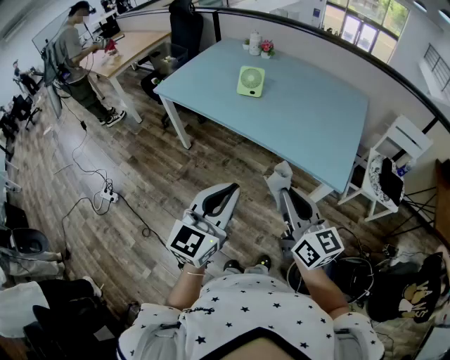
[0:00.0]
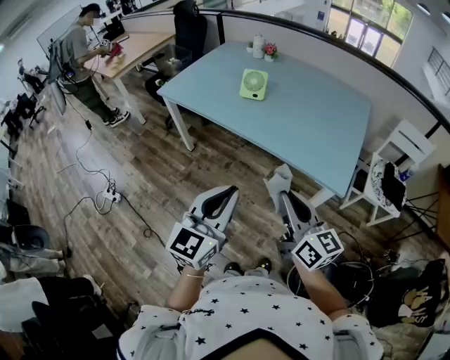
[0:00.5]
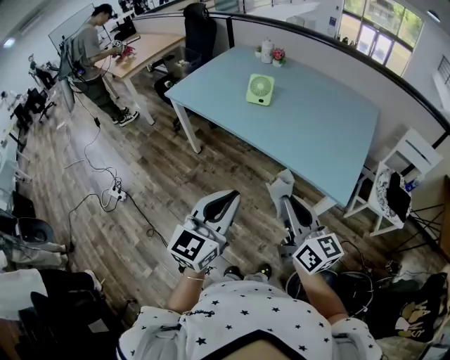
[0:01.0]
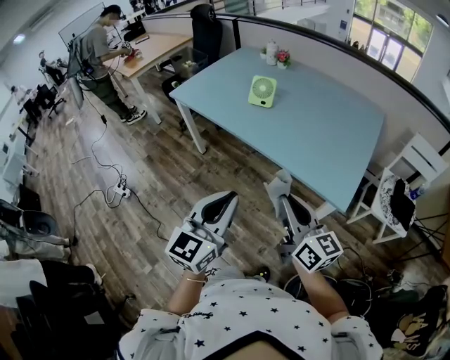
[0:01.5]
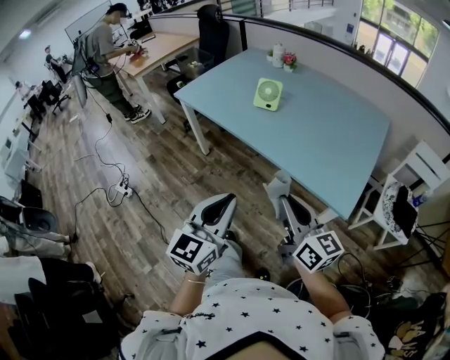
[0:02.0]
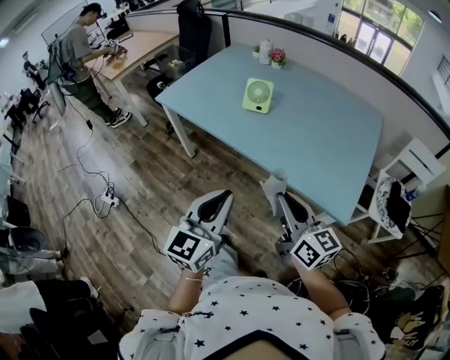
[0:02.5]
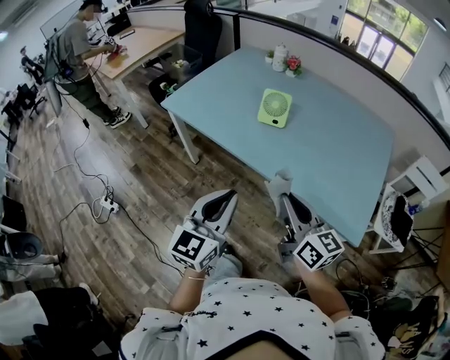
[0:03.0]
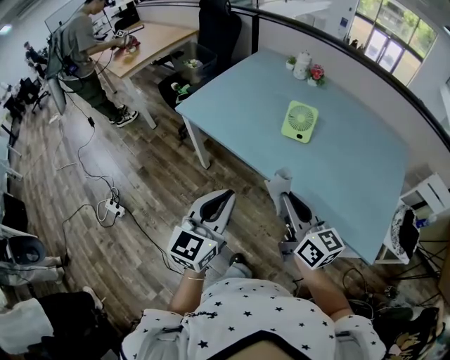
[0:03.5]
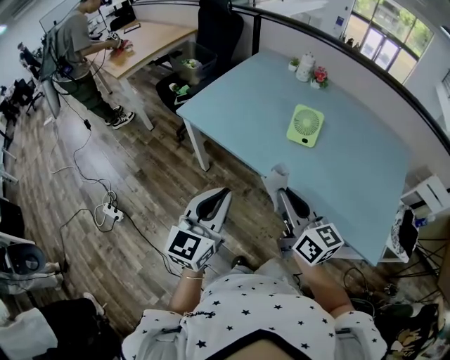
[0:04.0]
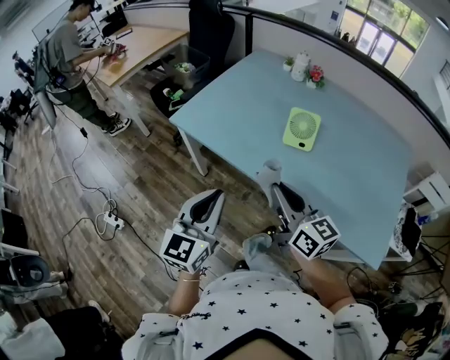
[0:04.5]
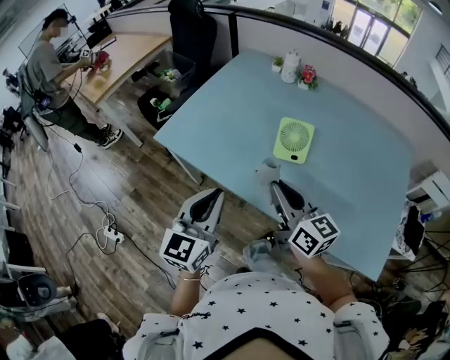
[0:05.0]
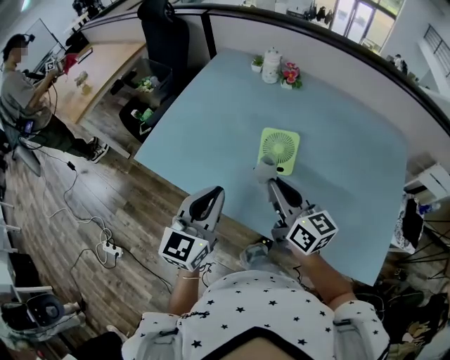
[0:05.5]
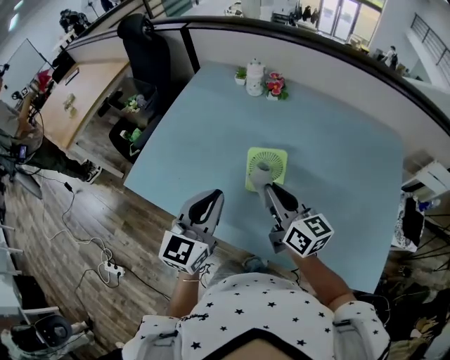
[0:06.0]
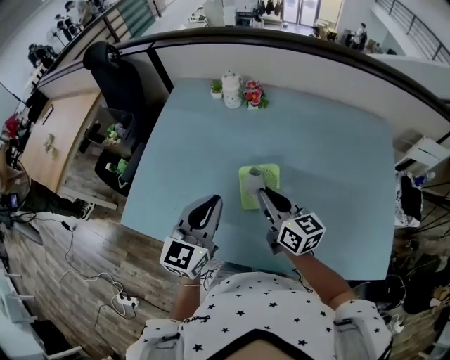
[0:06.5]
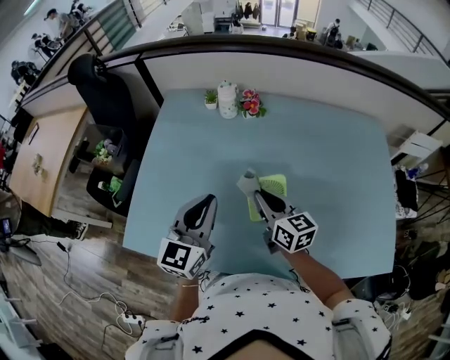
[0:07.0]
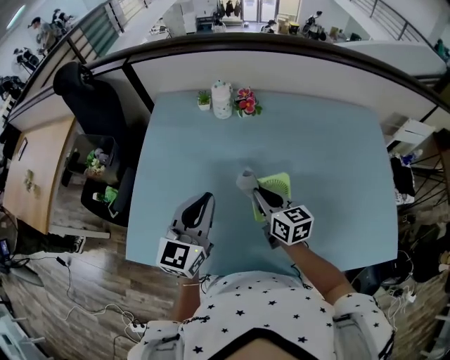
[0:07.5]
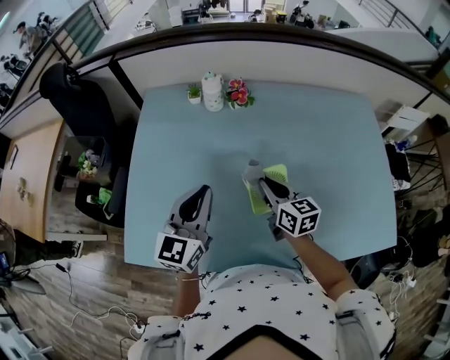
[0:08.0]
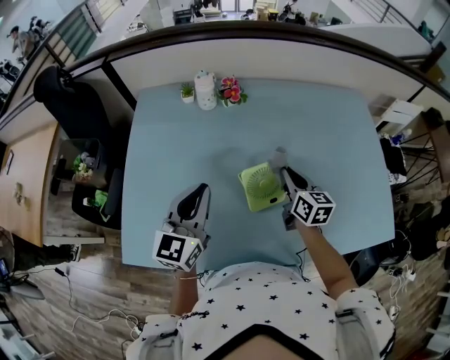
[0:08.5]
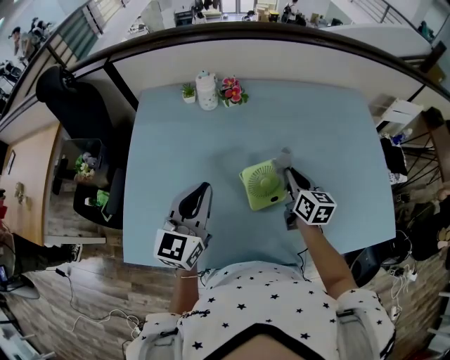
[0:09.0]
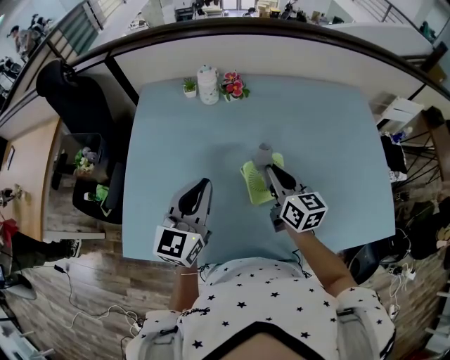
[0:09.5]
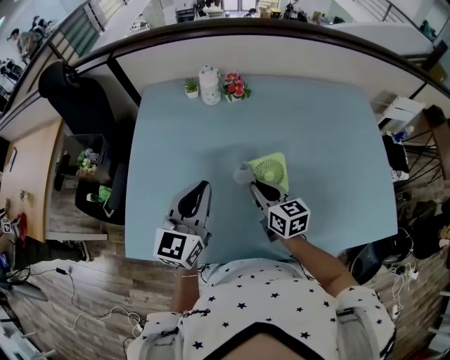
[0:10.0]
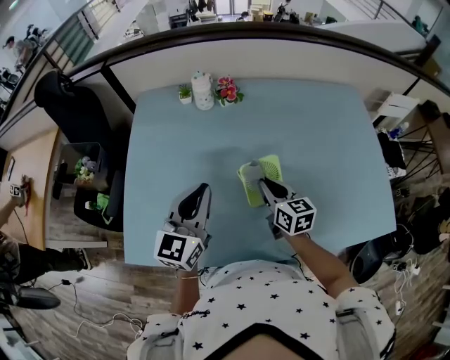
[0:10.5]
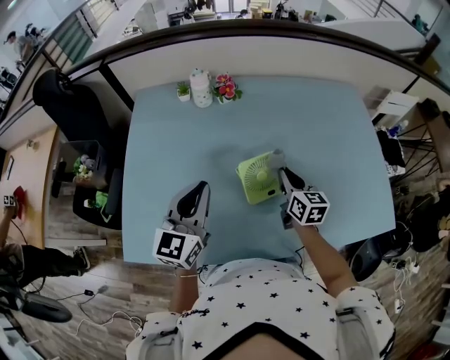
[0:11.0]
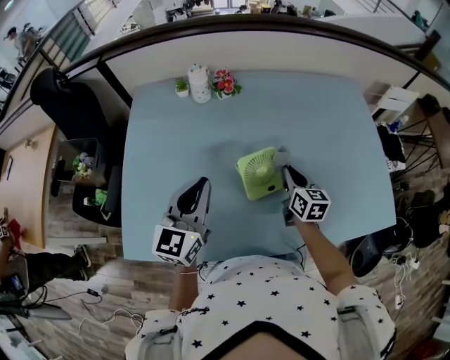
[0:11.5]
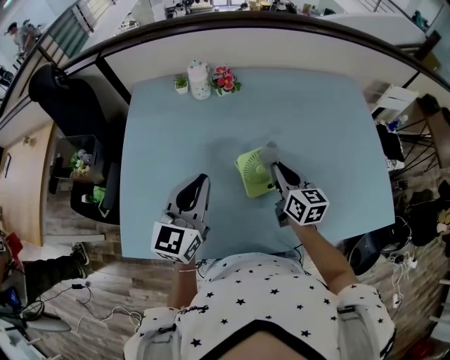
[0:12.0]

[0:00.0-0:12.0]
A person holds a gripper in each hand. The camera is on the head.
0:00.0 to 0:02.0: The right gripper shifts by about 5 cm.
0:02.0 to 0:04.0: The grippers both shift forward and to the left by some 35 cm.
0:04.0 to 0:06.0: Both grippers travel together forward and to the right, about 30 cm.
0:06.0 to 0:08.0: The left gripper goes some 15 cm forward and to the left; the right gripper travels forward and downward by some 15 cm, and rotates about 30 degrees.
0:08.0 to 0:10.0: The right gripper moves approximately 10 cm to the right and comes back.
0:10.0 to 0:12.0: The right gripper travels to the right by approximately 10 cm.

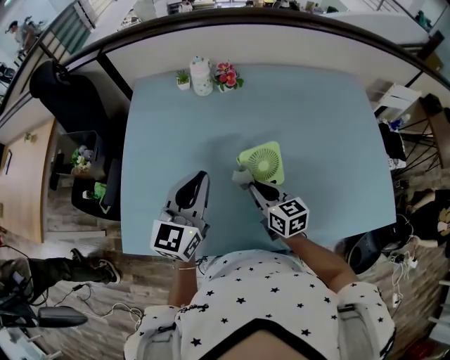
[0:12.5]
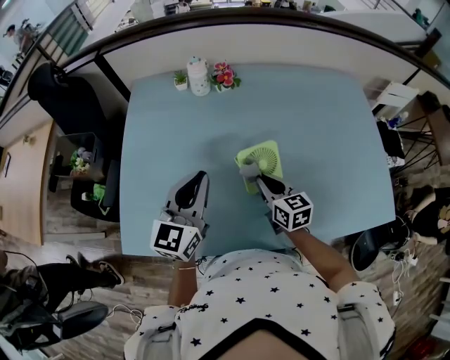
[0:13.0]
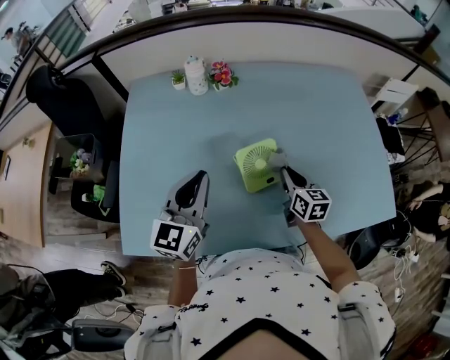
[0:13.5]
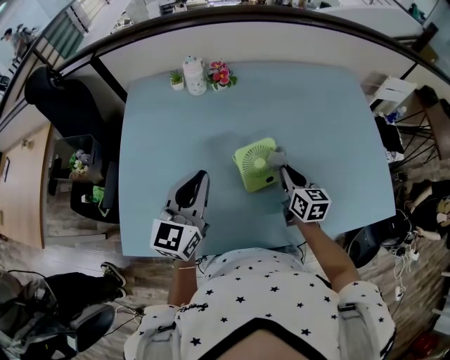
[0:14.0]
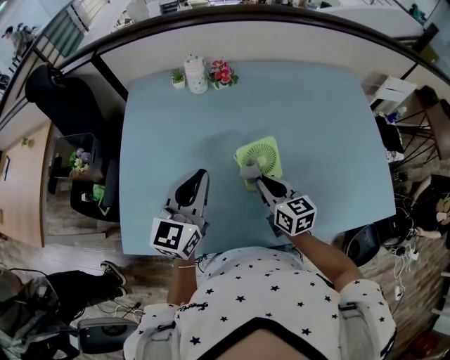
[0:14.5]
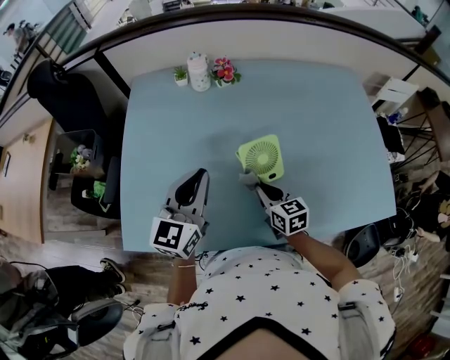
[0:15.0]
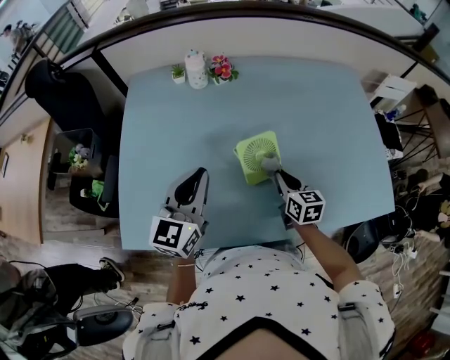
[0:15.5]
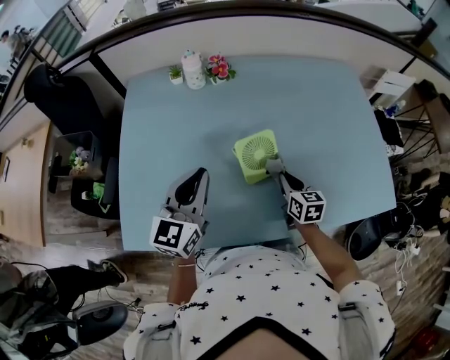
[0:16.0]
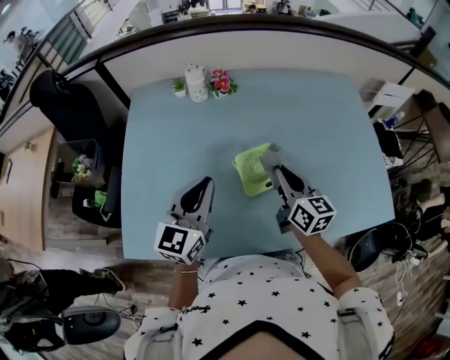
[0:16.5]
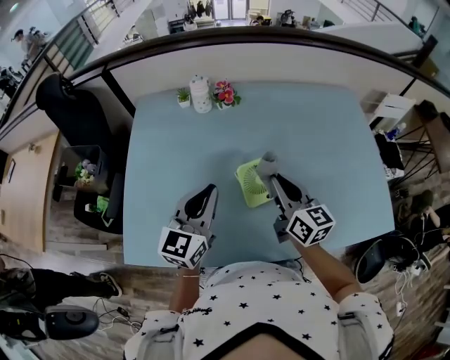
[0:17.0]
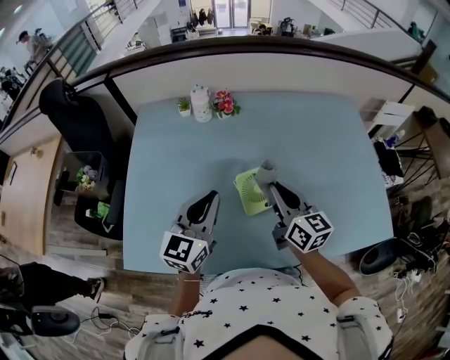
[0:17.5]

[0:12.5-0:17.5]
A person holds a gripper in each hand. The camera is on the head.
0:12.5 to 0:15.0: The right gripper reaches roughly 10 cm to the right, then returns.
0:15.0 to 0:17.5: The right gripper shifts roughly 15 cm upward, and rotates approximately 30 degrees.

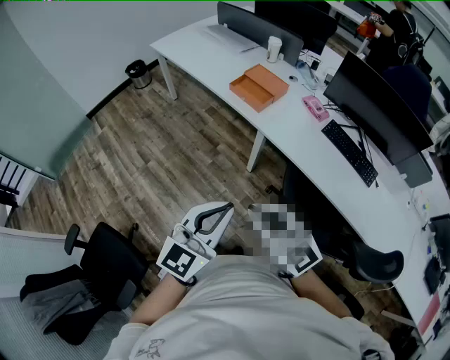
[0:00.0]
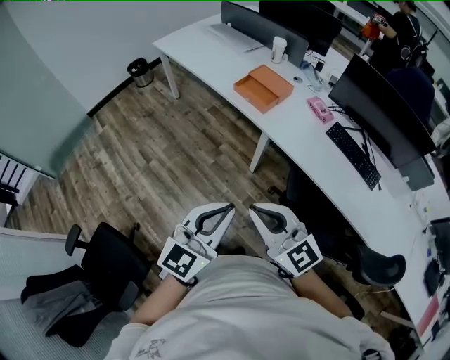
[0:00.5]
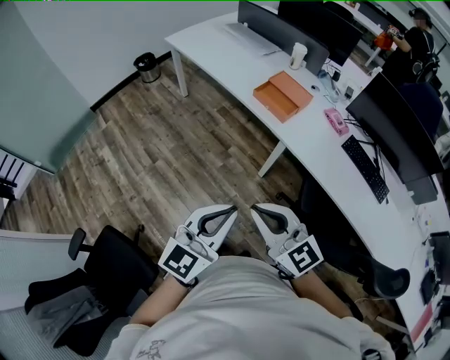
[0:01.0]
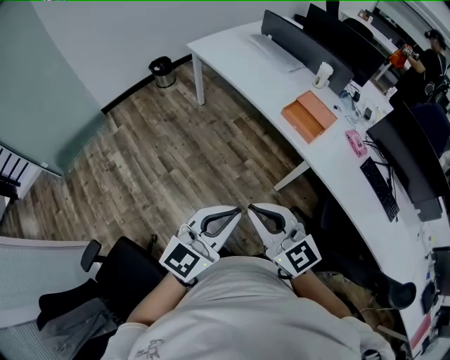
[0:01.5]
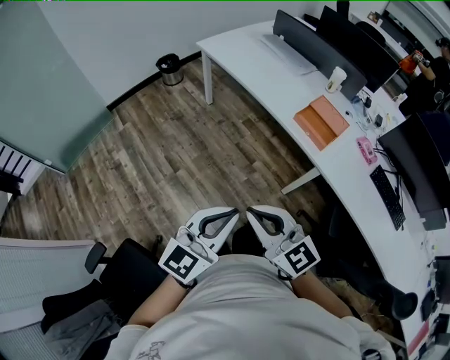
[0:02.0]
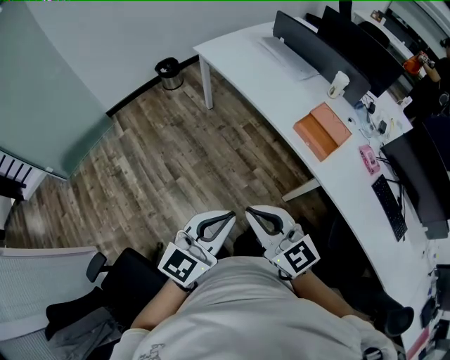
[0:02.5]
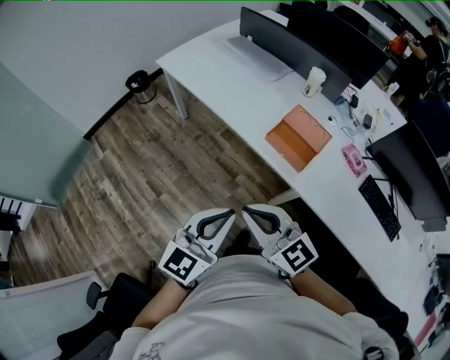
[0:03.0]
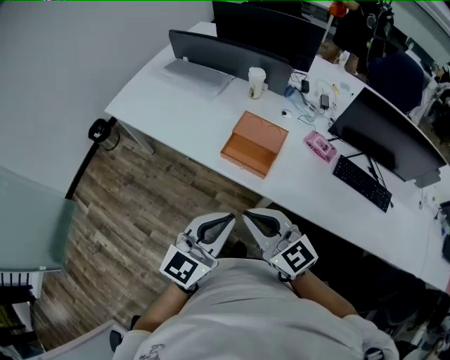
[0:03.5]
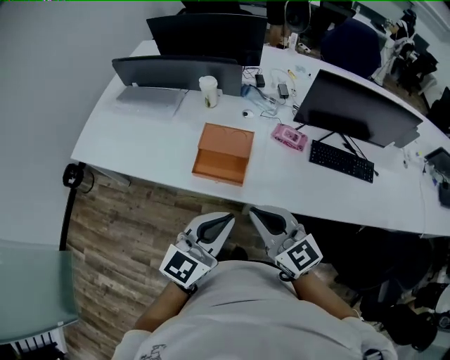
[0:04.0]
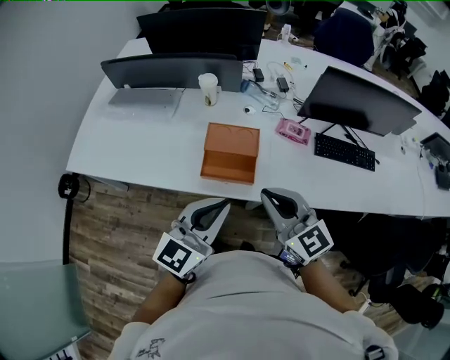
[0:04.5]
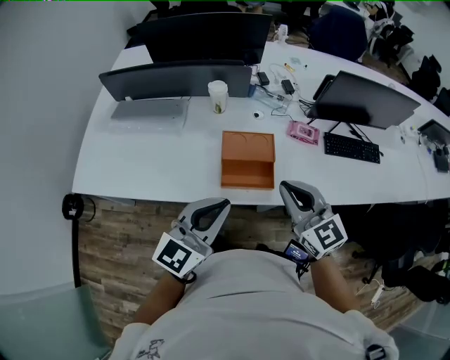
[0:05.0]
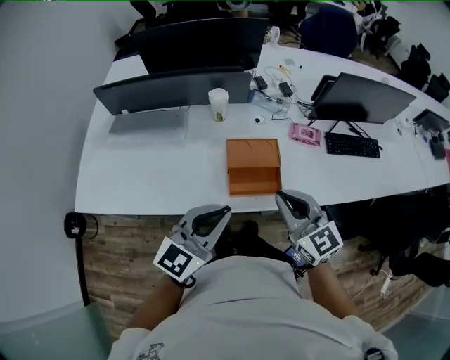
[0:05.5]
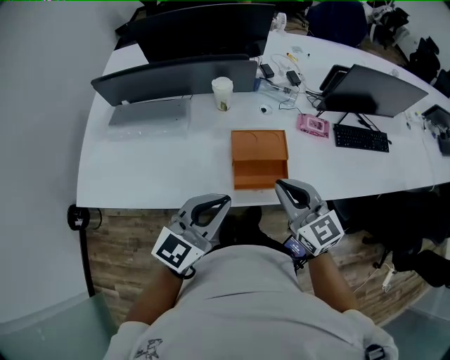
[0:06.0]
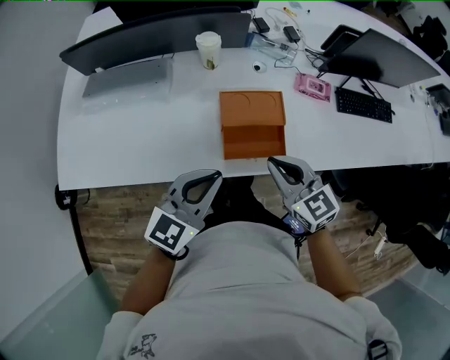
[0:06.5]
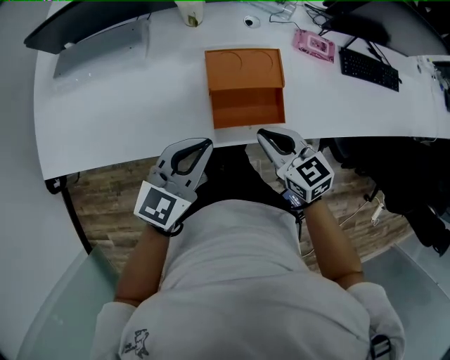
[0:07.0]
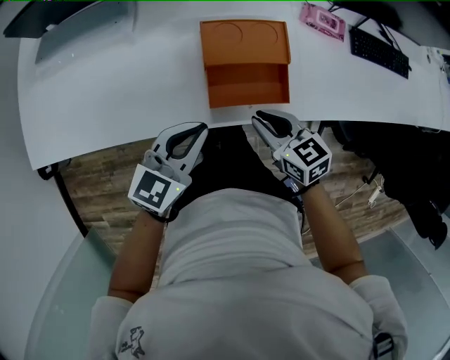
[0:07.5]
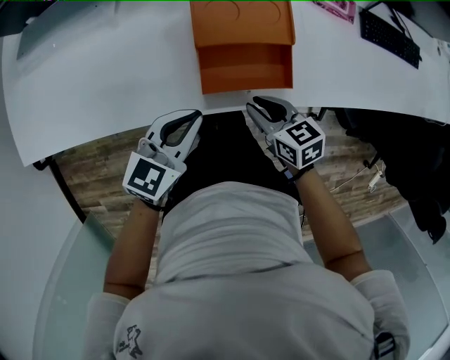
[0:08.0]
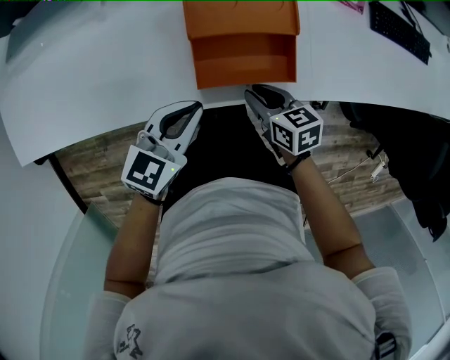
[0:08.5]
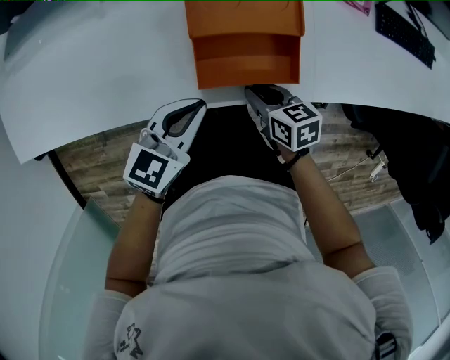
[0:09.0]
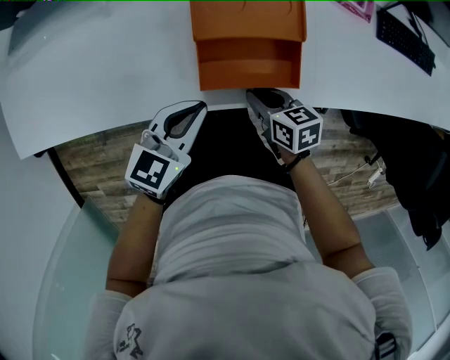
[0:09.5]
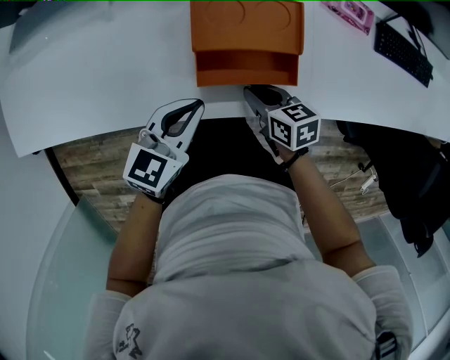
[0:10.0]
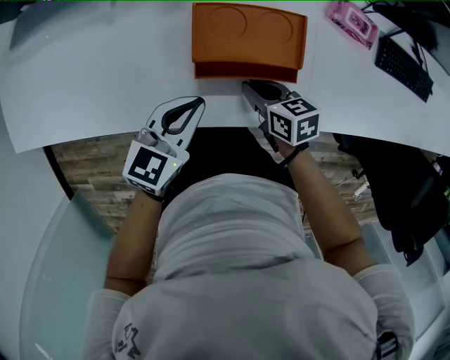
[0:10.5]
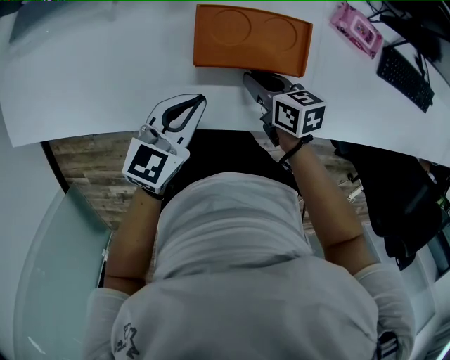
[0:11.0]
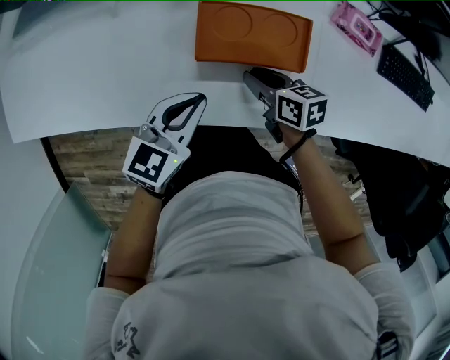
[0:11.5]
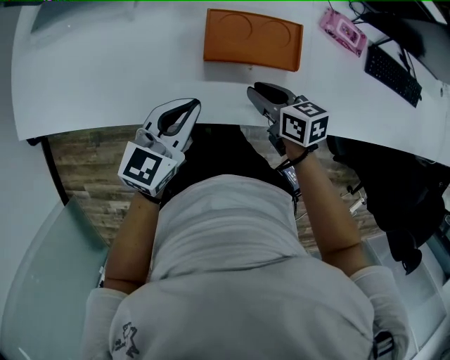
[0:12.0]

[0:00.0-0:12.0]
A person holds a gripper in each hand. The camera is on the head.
0:00.0 to 0:02.0: Both grippers move to the left and forward, roughly 40 cm.
0:02.0 to 0:04.0: The two grippers travel together, roughly 50 cm. The left gripper rotates some 40 degrees. The right gripper turns by about 40 degrees.
0:04.0 to 0:06.0: Both grippers travel together to the left and forward, some 25 cm. The right gripper swivels approximately 20 degrees.
0:06.0 to 0:08.0: The two grippers go approximately 30 cm downward. The right gripper points its fingers about 30 degrees further downward, and opens up. Meanwhile the left gripper swivels approximately 20 degrees.
0:08.0 to 0:10.0: The left gripper ends up some 5 cm from where it was; the right gripper is displaced forward and downward by about 10 cm.
0:10.0 to 0:12.0: The two grippers go roughly 5 cm upward.
